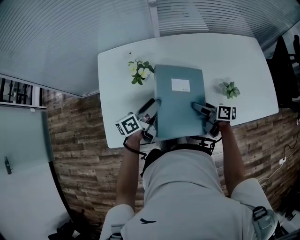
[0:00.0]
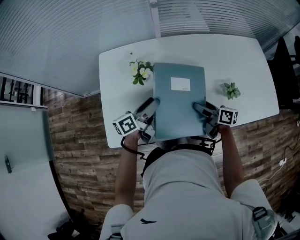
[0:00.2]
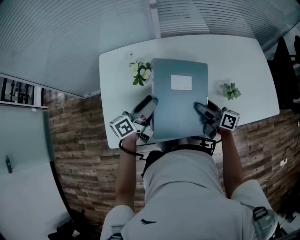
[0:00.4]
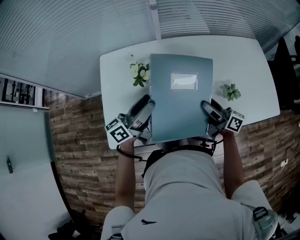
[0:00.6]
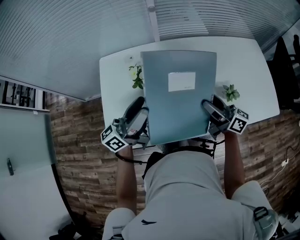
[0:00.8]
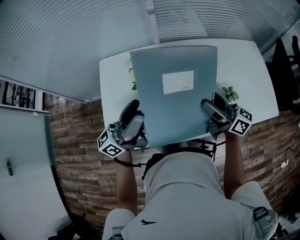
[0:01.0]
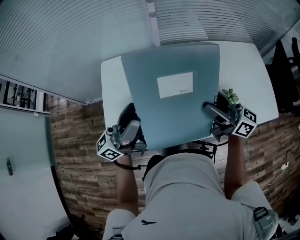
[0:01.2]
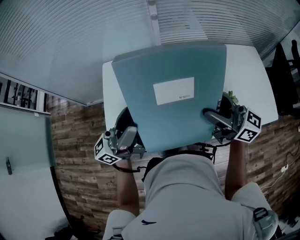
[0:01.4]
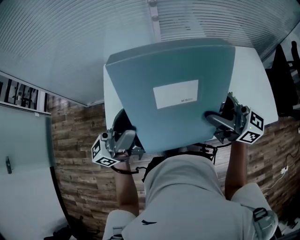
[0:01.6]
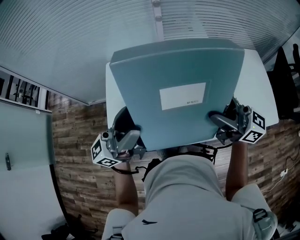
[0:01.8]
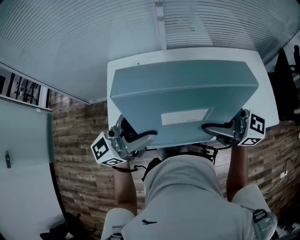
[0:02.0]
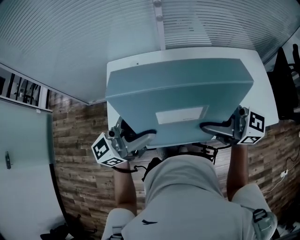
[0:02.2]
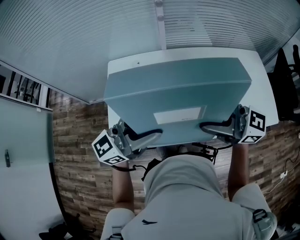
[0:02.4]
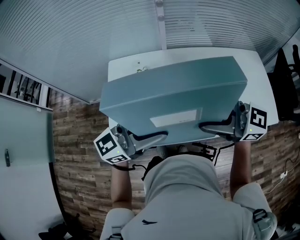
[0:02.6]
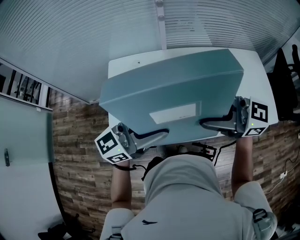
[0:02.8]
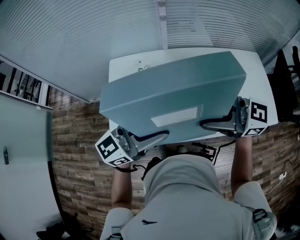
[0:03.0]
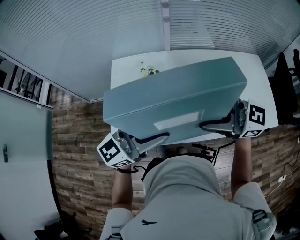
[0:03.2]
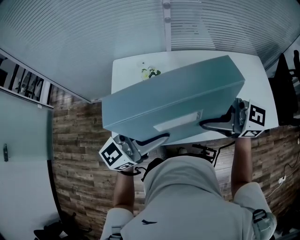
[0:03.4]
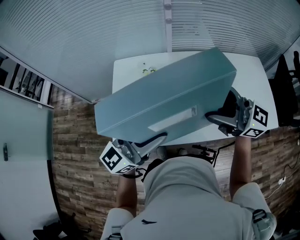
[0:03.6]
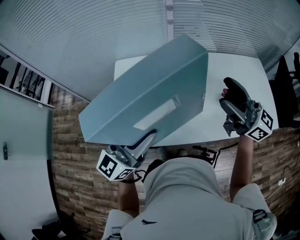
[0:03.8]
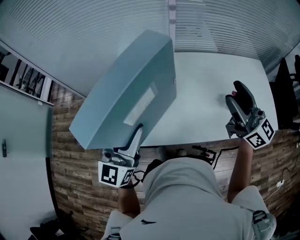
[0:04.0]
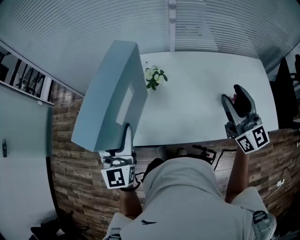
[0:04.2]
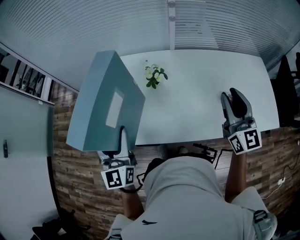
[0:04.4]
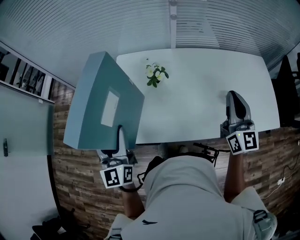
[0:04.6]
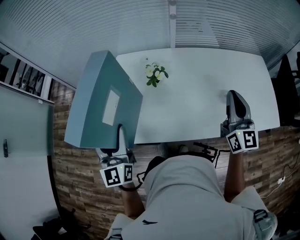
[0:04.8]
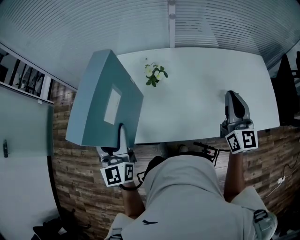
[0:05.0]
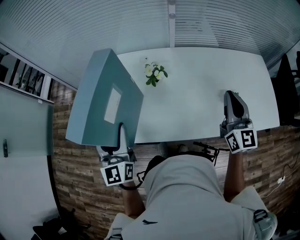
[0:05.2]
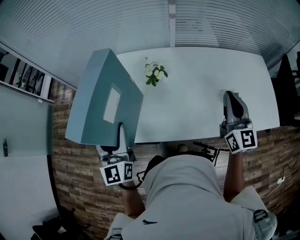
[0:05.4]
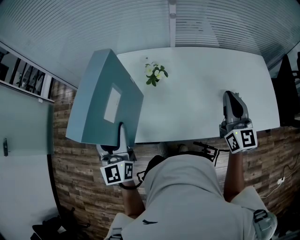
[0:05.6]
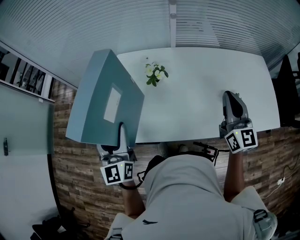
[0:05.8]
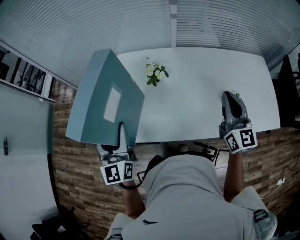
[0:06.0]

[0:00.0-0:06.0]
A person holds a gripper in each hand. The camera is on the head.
0:00.0 to 0:01.6: The grippers both shift upward by about 30 cm. The left gripper points its fingers about 40 degrees further upward. The right gripper tips its fingers upward by about 40 degrees.
0:01.6 to 0:03.0: The left gripper changes place by some 10 cm, and changes its angle by some 30 degrees. The right gripper shifts by about 10 cm, and swivels about 30 degrees.
0:03.0 to 0:04.4: The left gripper shifts by roughly 20 cm, and rotates some 70 degrees; the right gripper ends up some 10 cm from where it was, turns by some 60 degrees, and closes its fingers.
0:04.4 to 0:06.0: The grippers move only a little.

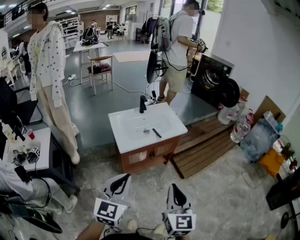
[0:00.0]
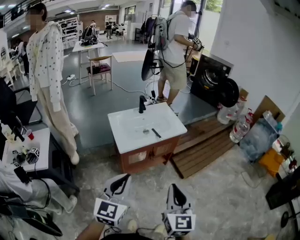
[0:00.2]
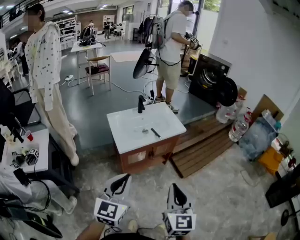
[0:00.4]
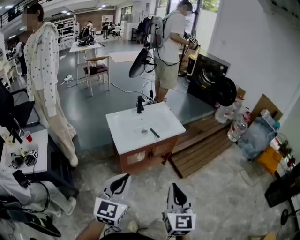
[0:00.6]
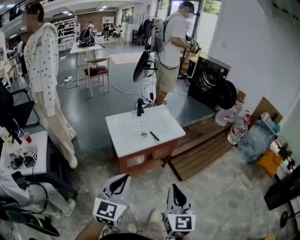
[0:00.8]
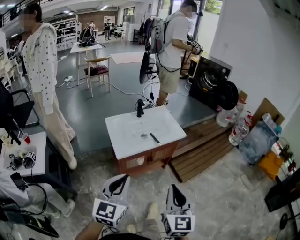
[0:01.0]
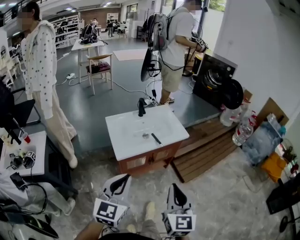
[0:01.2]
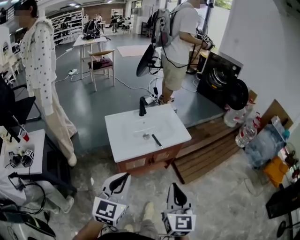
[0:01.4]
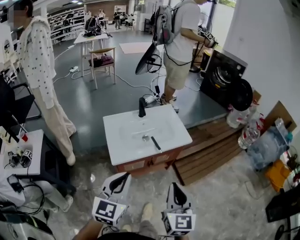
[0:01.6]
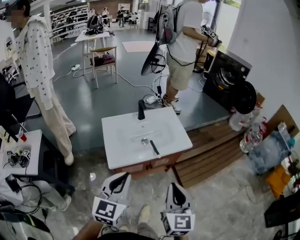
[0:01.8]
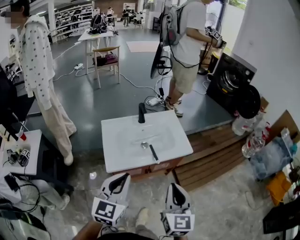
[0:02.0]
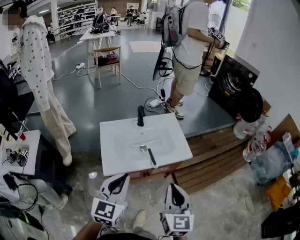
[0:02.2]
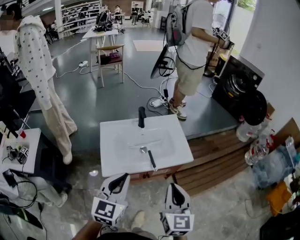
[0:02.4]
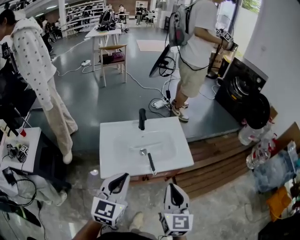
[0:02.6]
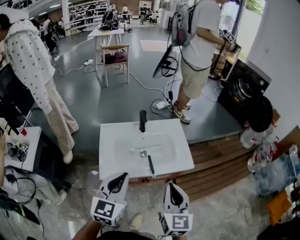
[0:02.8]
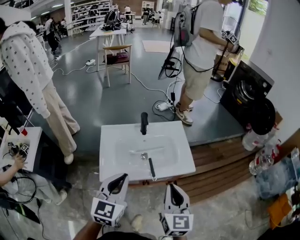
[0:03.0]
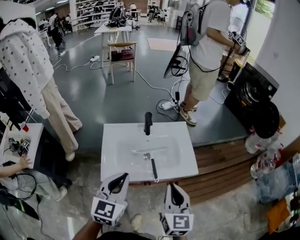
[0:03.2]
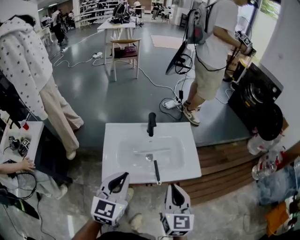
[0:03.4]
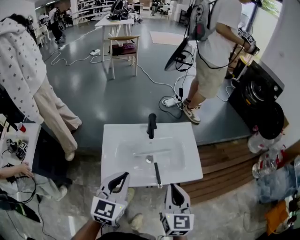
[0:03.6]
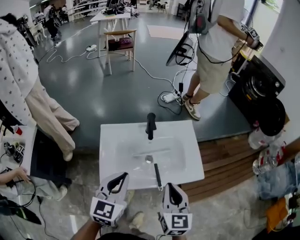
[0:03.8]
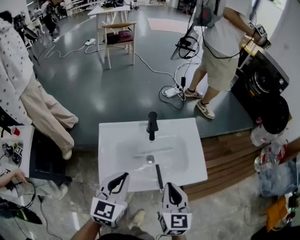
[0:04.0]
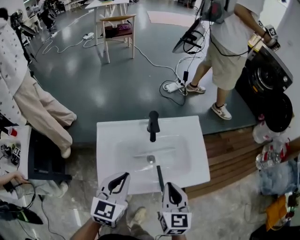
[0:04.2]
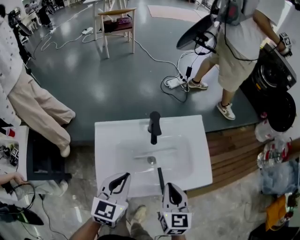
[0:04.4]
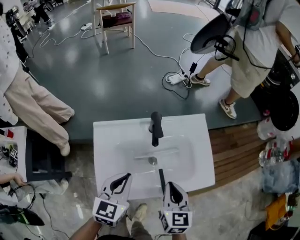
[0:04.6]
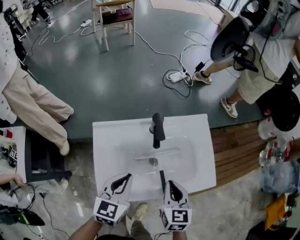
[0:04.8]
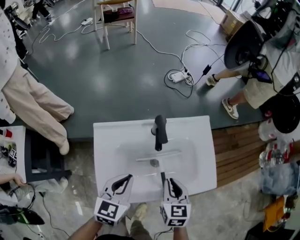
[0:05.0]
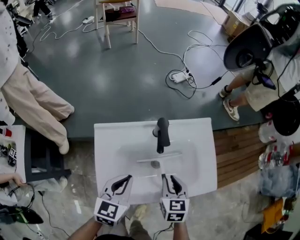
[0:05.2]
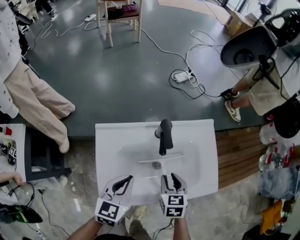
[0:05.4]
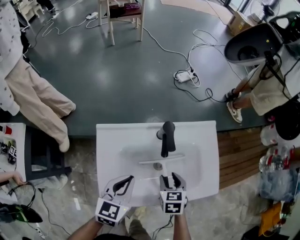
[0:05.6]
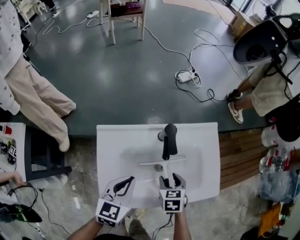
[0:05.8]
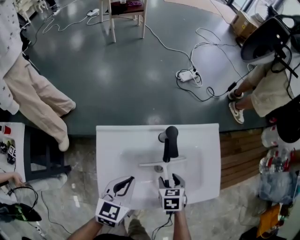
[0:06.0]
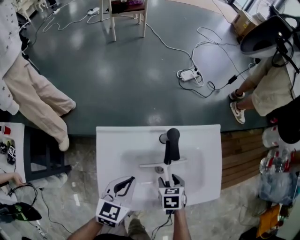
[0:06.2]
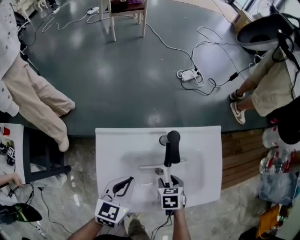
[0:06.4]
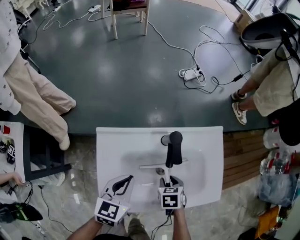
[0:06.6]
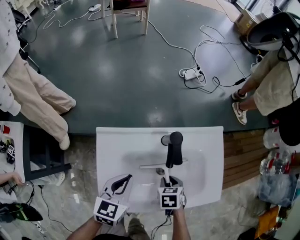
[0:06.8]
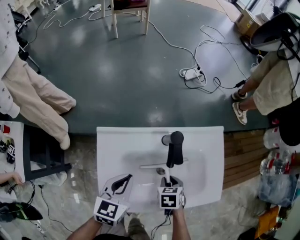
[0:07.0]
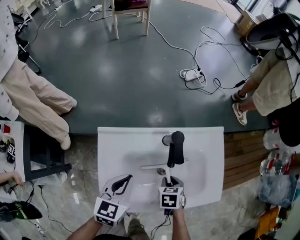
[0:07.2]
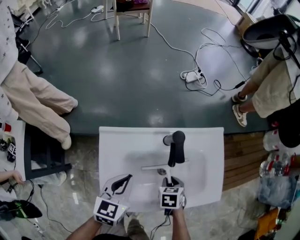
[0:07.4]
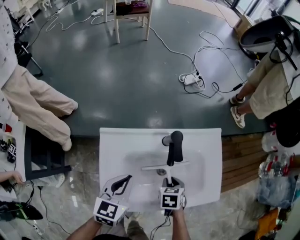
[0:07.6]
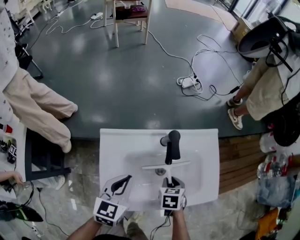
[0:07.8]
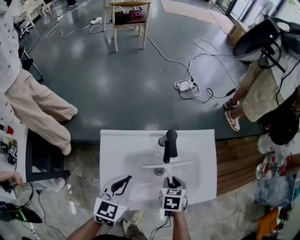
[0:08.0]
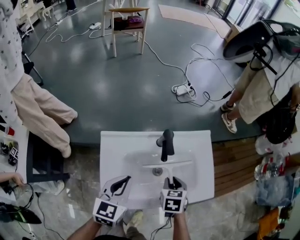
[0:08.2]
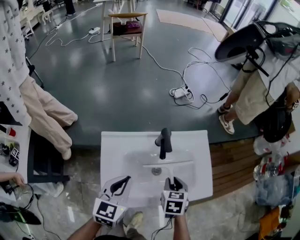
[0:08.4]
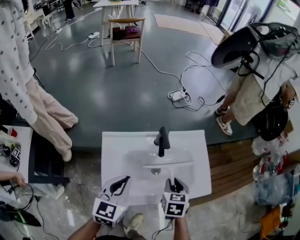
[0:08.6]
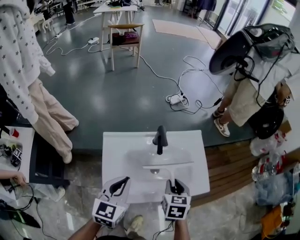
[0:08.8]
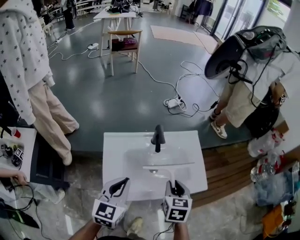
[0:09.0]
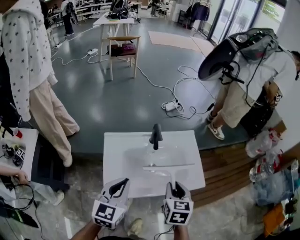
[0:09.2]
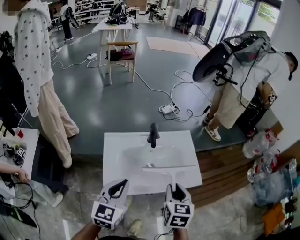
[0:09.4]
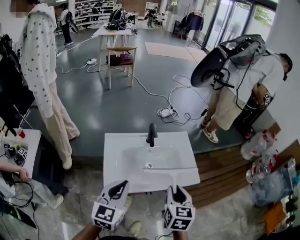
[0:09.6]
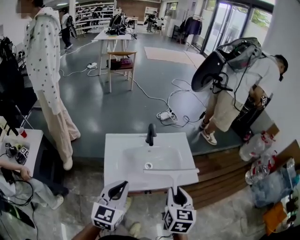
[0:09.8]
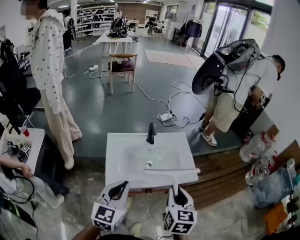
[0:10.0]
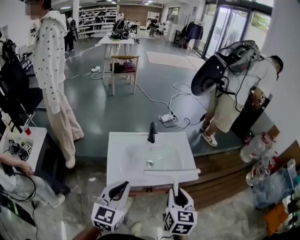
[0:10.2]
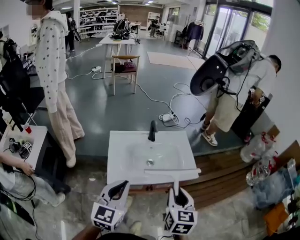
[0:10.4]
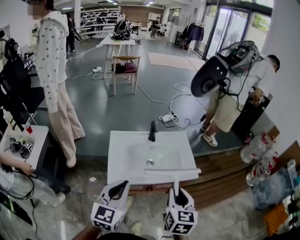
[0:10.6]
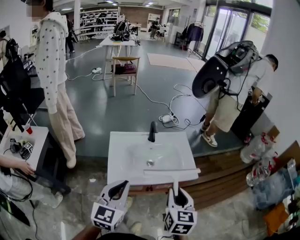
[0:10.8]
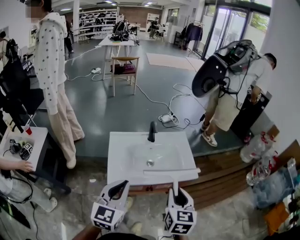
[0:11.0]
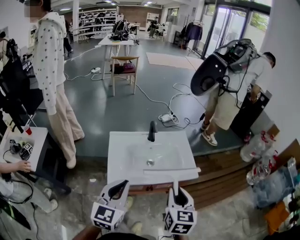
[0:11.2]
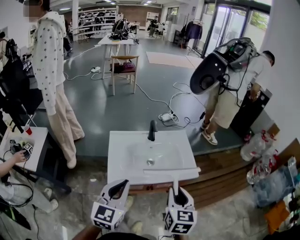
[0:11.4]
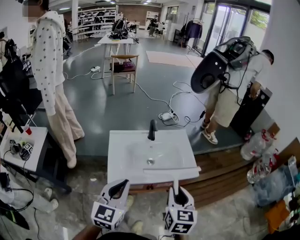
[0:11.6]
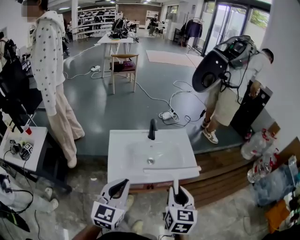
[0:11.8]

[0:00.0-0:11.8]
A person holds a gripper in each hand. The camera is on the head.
0:00.0 to 0:01.4: Both grippers travel together forward, about 15 cm.
0:01.4 to 0:03.0: Both grippers travel together forward, about 25 cm.
0:03.0 to 0:04.4: Both grippers move forward and downward, roughly 20 cm.
0:04.4 to 0:06.0: The left gripper moves downward and forward, some 10 cm; the right gripper heads downward and forward, covering approximately 20 cm, tilts its fingers approximately 30 degrees downward, and opens up.
0:06.0 to 0:07.4: The right gripper closes its fingers.
0:07.4 to 0:08.8: The right gripper moves upward, some 20 cm, and swivels some 20 degrees; the left gripper travels upward and backward by roughly 15 cm.
0:08.8 to 0:10.4: Both grippers move backward and upward, about 25 cm. The right gripper swivels about 20 degrees.
0:10.4 to 0:11.8: Neither gripper changes place.

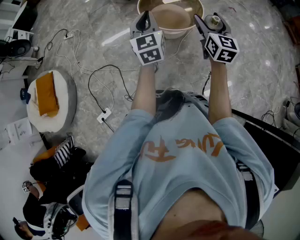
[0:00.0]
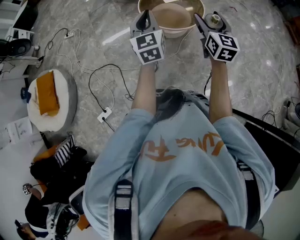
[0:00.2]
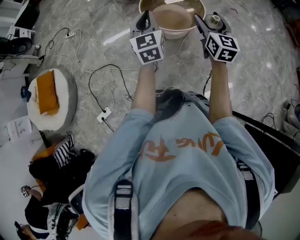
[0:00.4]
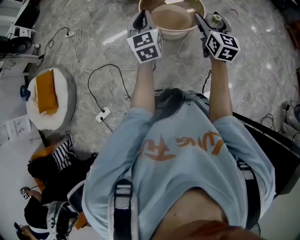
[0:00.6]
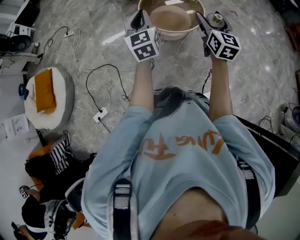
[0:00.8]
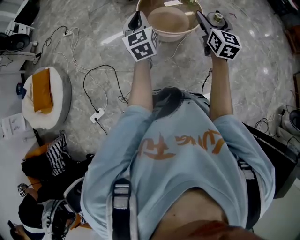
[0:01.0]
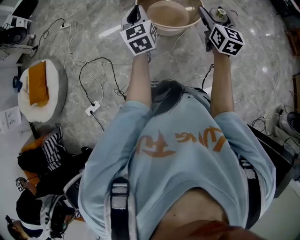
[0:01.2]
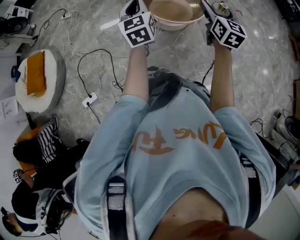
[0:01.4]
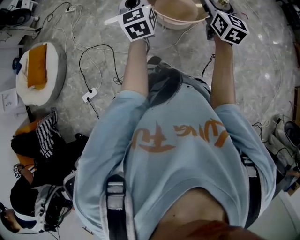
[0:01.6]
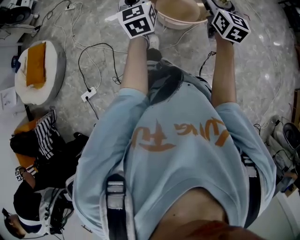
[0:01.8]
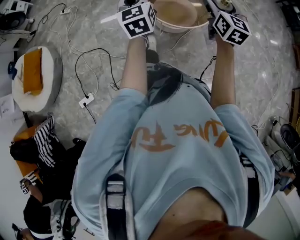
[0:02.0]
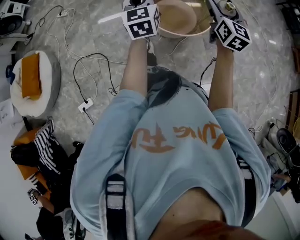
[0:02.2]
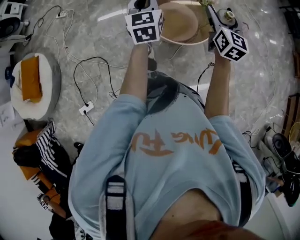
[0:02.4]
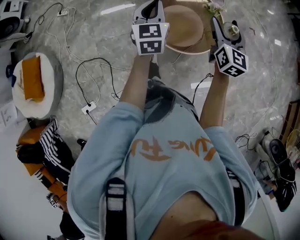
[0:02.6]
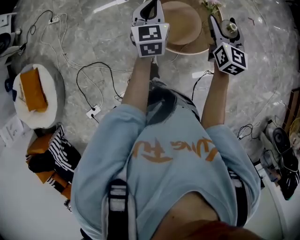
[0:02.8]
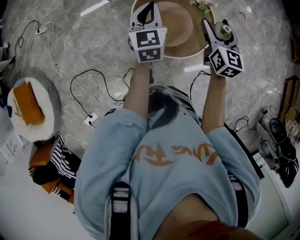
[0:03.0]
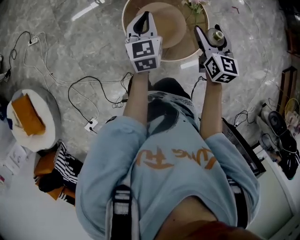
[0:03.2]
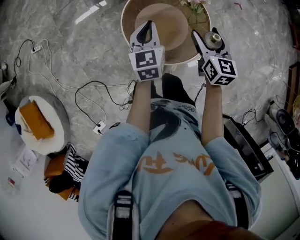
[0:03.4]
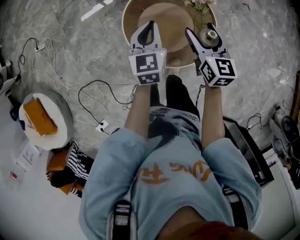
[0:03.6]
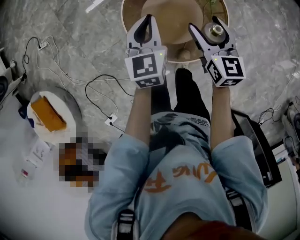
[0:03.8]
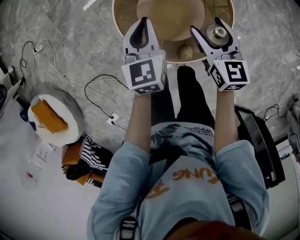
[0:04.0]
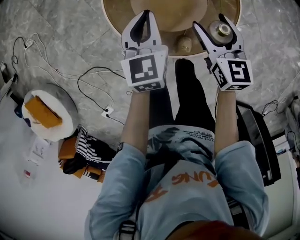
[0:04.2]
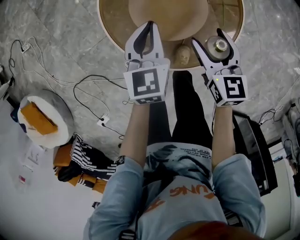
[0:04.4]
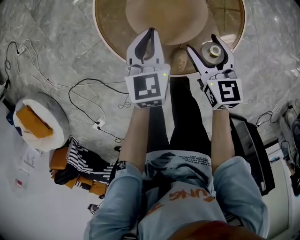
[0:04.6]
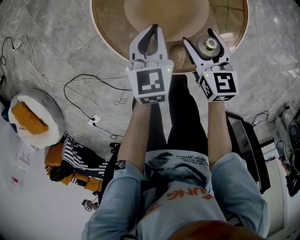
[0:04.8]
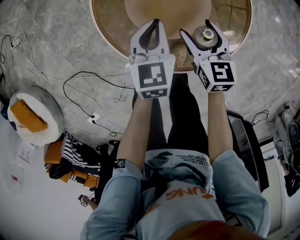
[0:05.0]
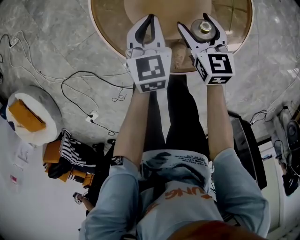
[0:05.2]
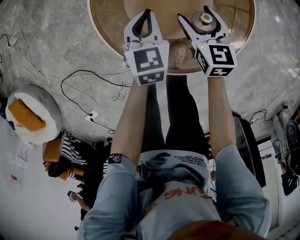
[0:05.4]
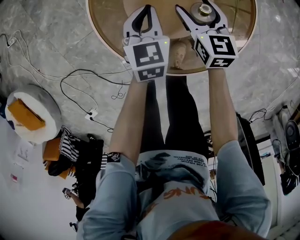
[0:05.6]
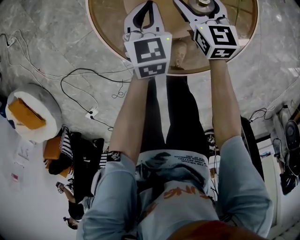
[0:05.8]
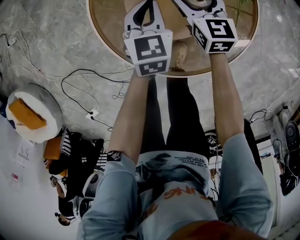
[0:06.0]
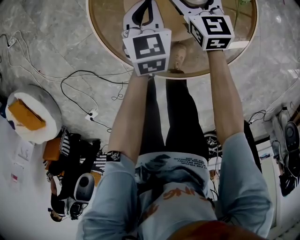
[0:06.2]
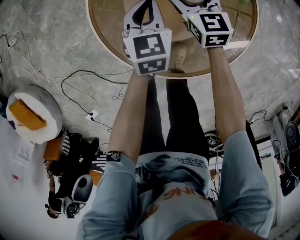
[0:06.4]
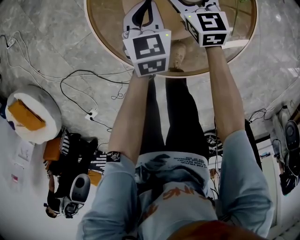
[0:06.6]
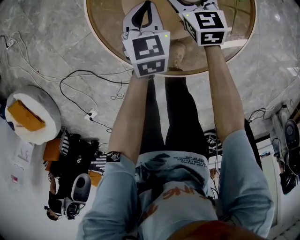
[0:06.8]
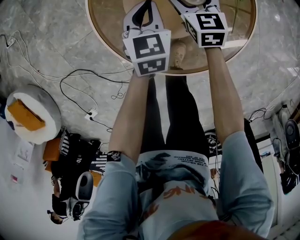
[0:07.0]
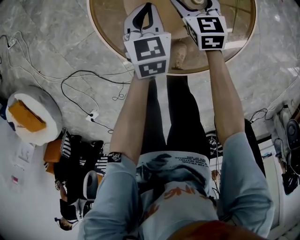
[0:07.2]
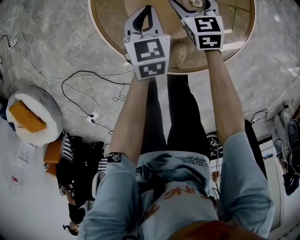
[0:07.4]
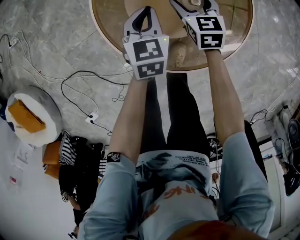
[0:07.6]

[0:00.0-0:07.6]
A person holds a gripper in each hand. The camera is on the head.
0:00.0 to 0:01.6: The right gripper goes roughly 10 cm forward. Meanwhile the left gripper changes place by roughly 5 cm.
0:01.6 to 0:03.0: Both grippers travel together forward, approximately 40 cm.
0:03.0 to 0:04.6: The two grippers go about 35 cm downward. The right gripper changes its angle by some 20 degrees.
0:04.6 to 0:06.0: The right gripper heads forward and downward, covering about 20 cm. The left gripper moves downward and forward, some 10 cm.
0:06.0 to 0:07.6: The grippers make only small movements.
